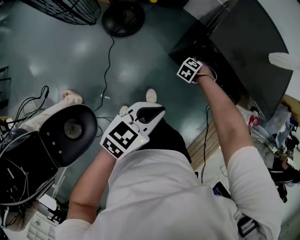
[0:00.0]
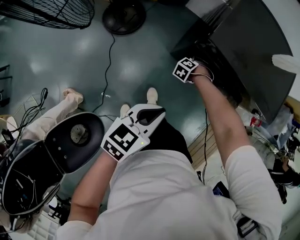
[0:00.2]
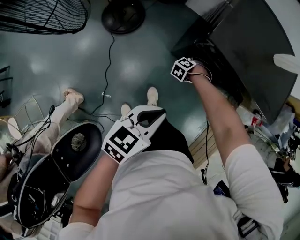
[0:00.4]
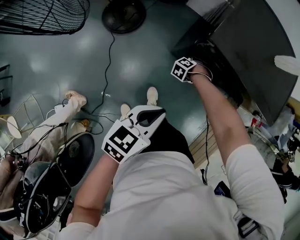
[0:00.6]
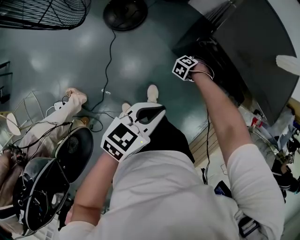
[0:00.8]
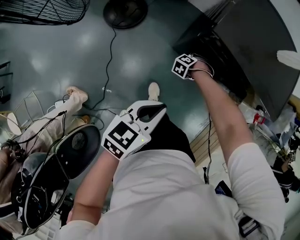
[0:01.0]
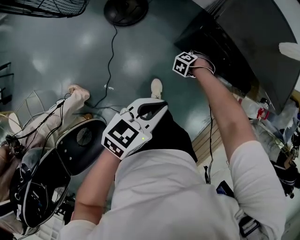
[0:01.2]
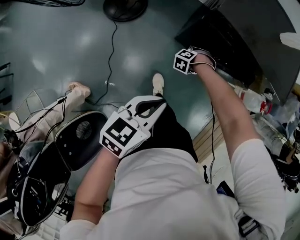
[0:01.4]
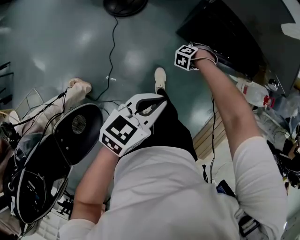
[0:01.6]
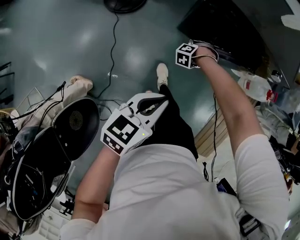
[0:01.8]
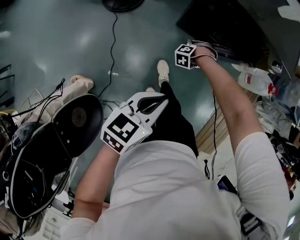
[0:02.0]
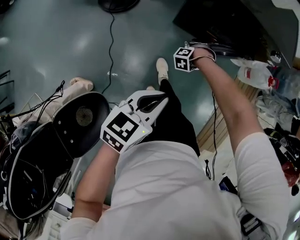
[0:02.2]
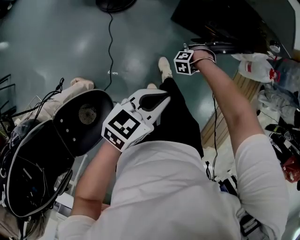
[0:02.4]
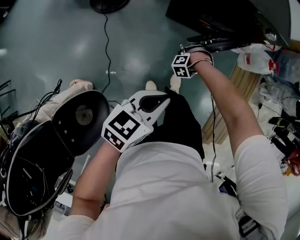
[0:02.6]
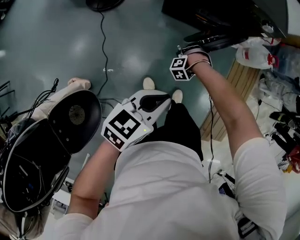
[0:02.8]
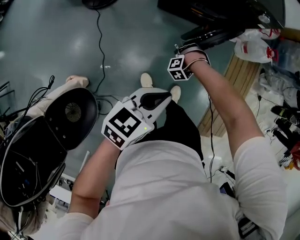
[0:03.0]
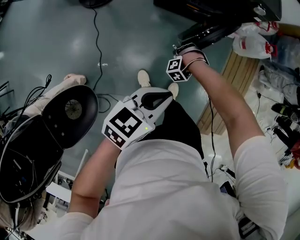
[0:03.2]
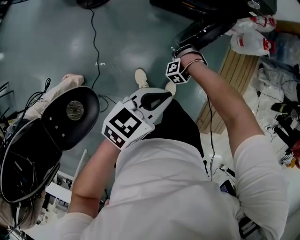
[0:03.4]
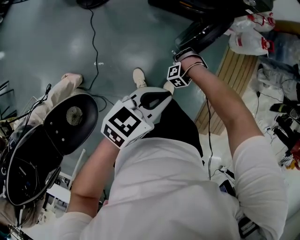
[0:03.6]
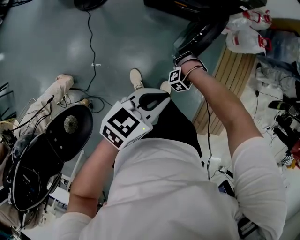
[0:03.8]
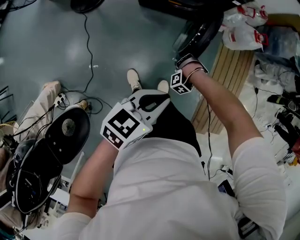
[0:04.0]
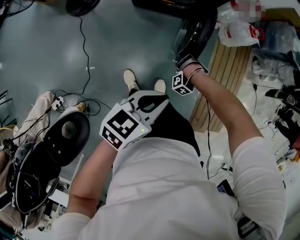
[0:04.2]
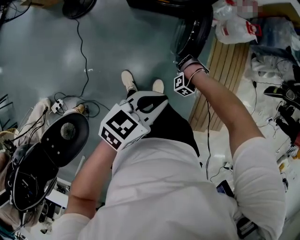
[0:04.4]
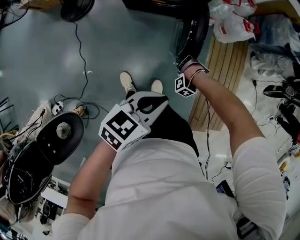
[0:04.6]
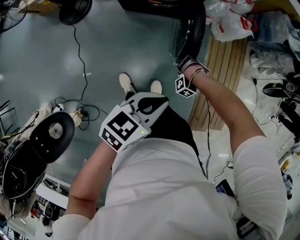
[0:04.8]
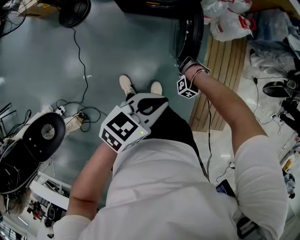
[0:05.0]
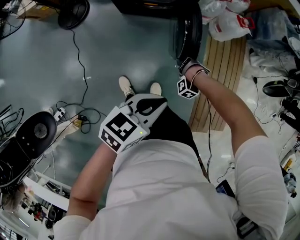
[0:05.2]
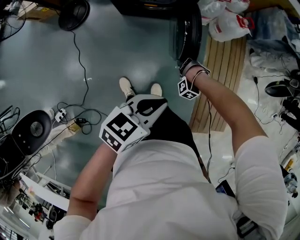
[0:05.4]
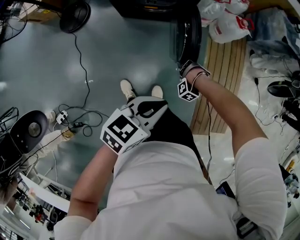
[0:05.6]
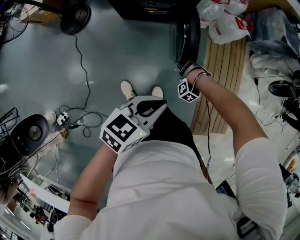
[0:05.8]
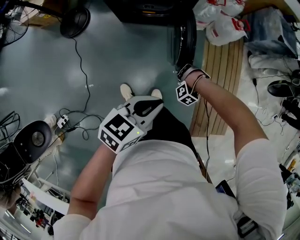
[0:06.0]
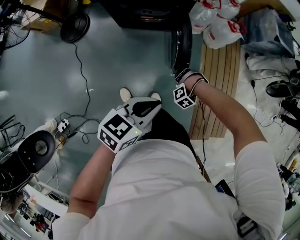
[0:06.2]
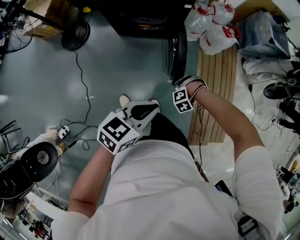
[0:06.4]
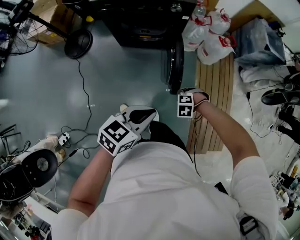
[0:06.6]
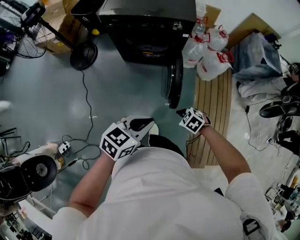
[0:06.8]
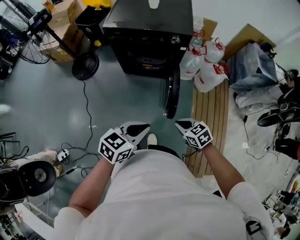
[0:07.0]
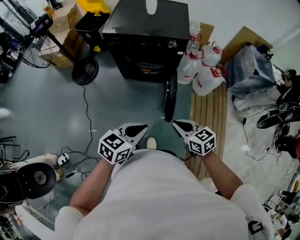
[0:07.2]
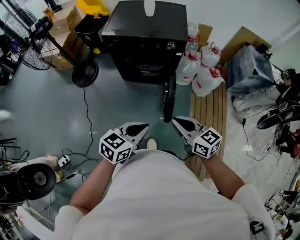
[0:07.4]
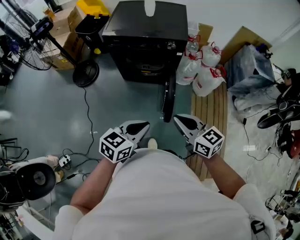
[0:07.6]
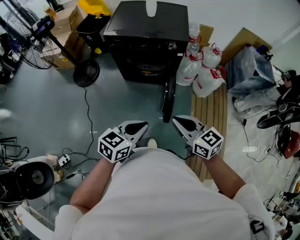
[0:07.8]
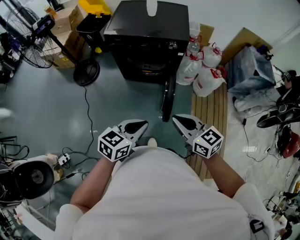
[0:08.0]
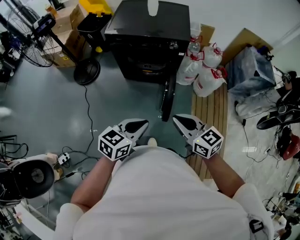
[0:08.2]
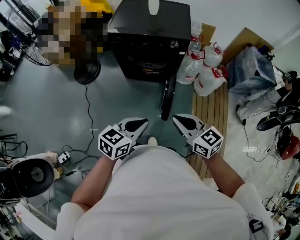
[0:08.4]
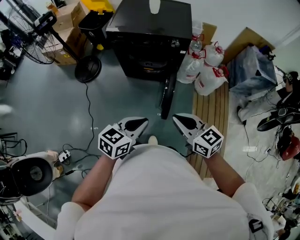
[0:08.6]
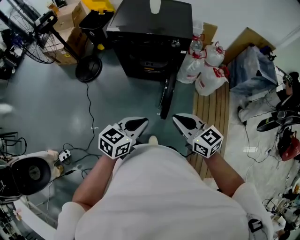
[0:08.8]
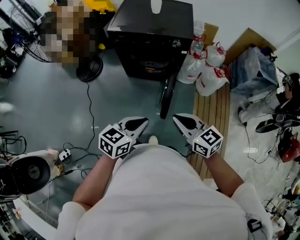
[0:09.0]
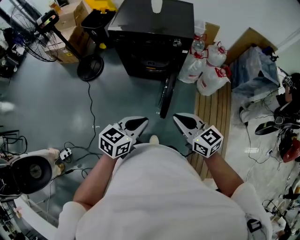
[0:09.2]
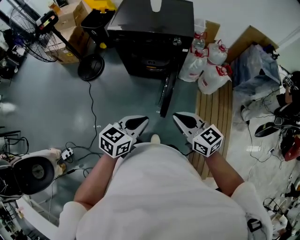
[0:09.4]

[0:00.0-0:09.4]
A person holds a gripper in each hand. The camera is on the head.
0:00.0 to 0:01.6: The left gripper ends up about 10 cm from where it was.
0:01.6 to 0:03.2: The left gripper shifts by some 25 cm.
0:03.2 to 0:04.8: The left gripper moves approximately 20 cm.
0:06.2 to 0:07.8: The left gripper is displaced upward by approximately 5 cm.

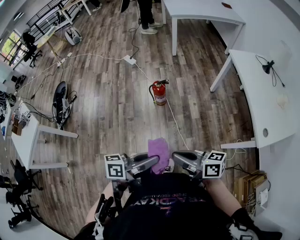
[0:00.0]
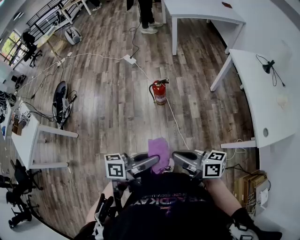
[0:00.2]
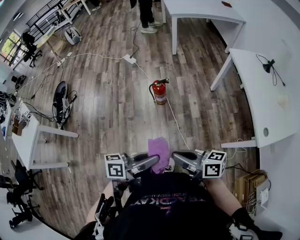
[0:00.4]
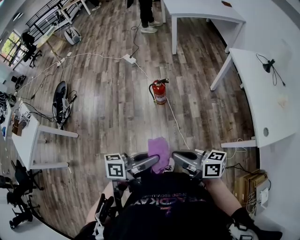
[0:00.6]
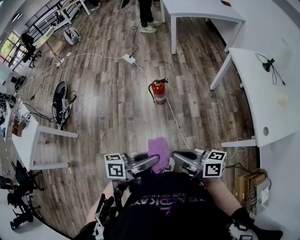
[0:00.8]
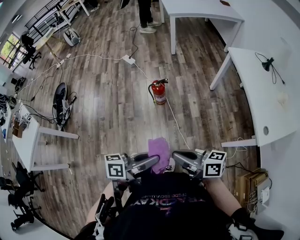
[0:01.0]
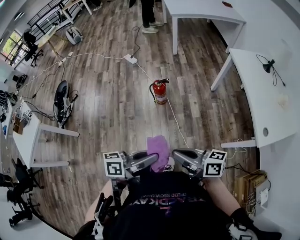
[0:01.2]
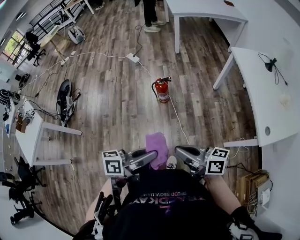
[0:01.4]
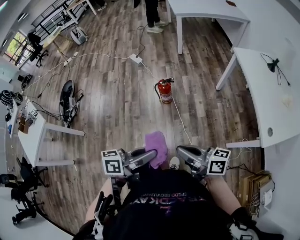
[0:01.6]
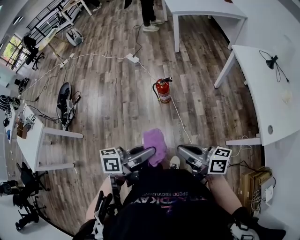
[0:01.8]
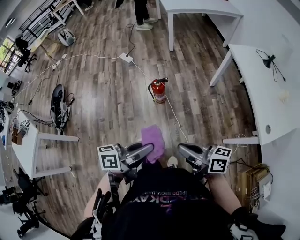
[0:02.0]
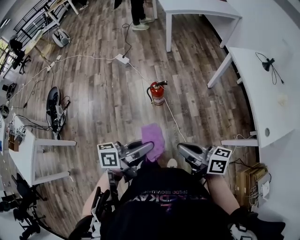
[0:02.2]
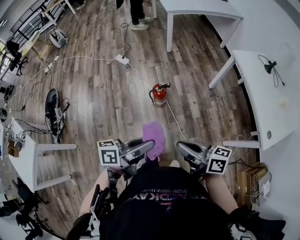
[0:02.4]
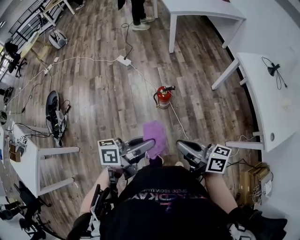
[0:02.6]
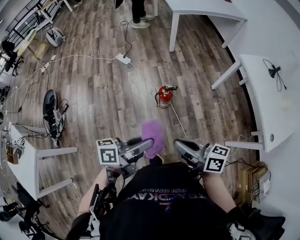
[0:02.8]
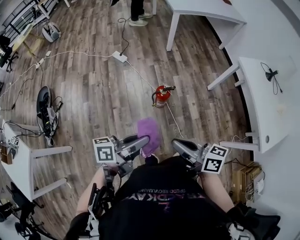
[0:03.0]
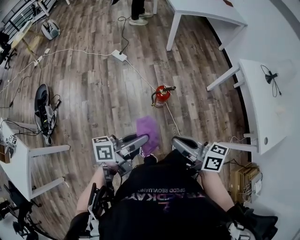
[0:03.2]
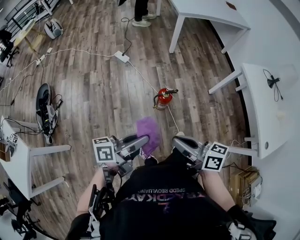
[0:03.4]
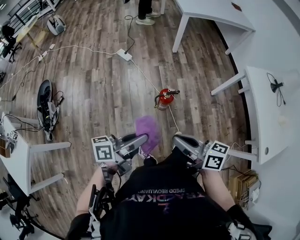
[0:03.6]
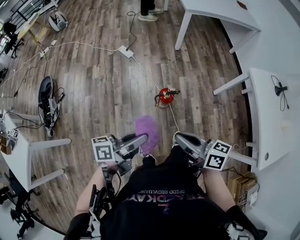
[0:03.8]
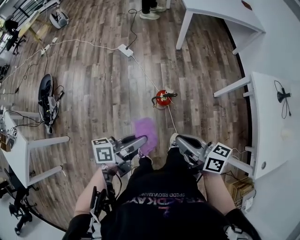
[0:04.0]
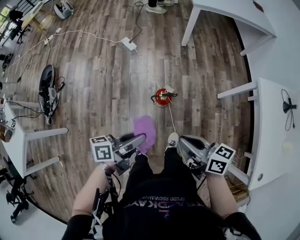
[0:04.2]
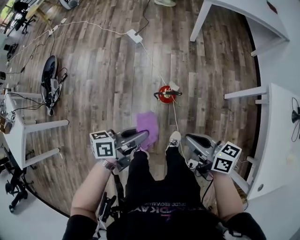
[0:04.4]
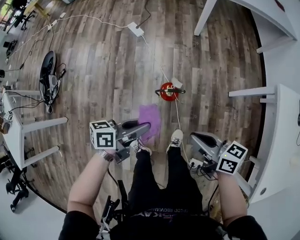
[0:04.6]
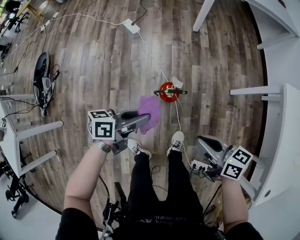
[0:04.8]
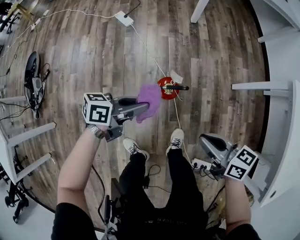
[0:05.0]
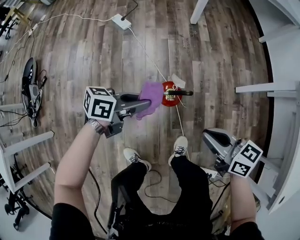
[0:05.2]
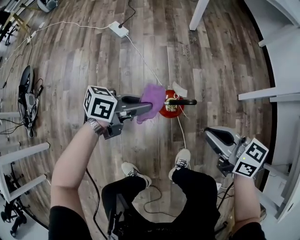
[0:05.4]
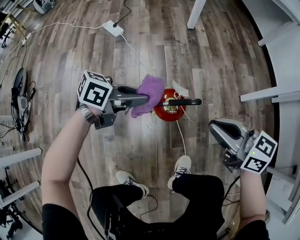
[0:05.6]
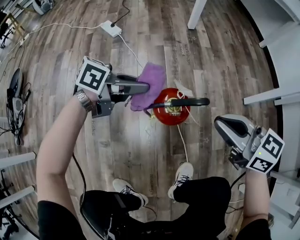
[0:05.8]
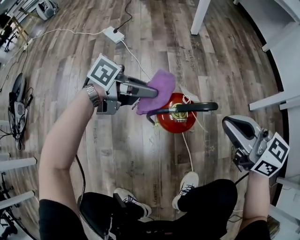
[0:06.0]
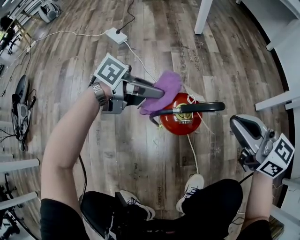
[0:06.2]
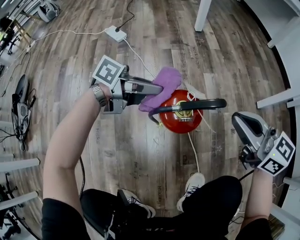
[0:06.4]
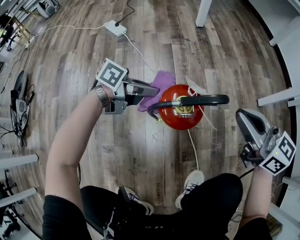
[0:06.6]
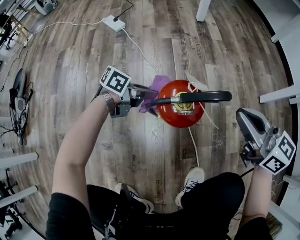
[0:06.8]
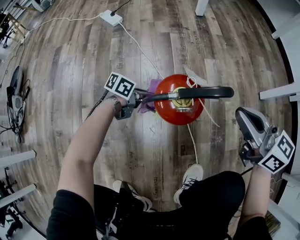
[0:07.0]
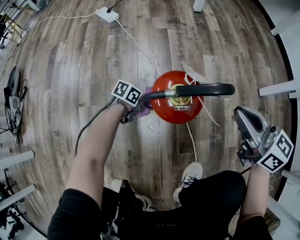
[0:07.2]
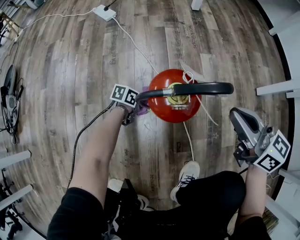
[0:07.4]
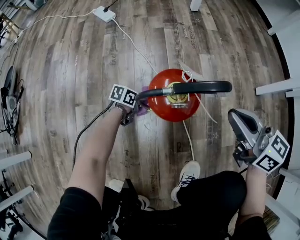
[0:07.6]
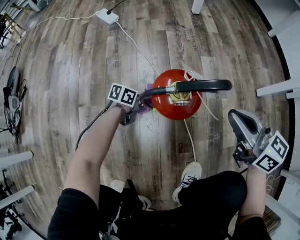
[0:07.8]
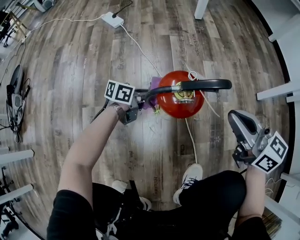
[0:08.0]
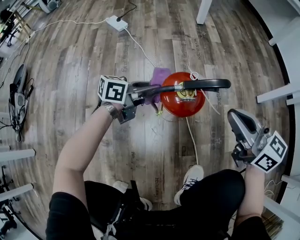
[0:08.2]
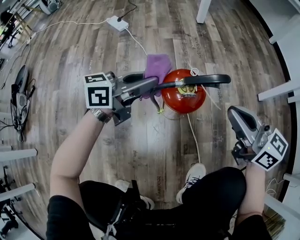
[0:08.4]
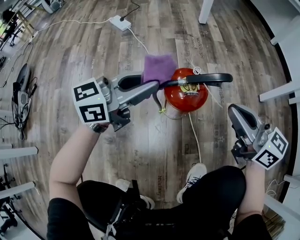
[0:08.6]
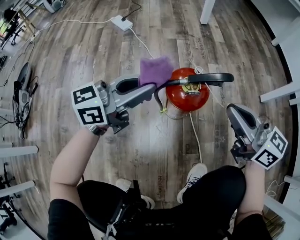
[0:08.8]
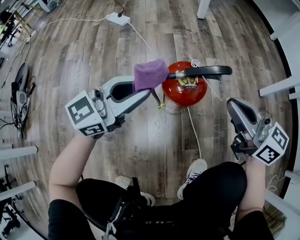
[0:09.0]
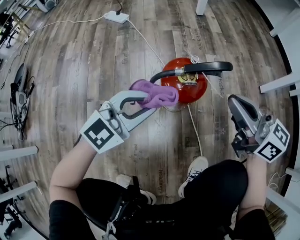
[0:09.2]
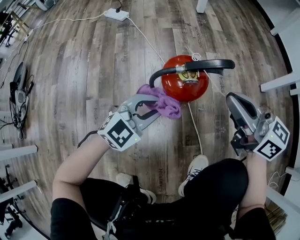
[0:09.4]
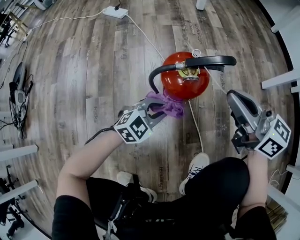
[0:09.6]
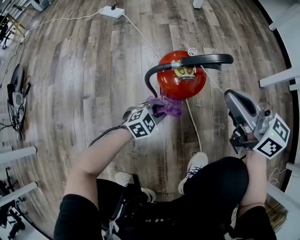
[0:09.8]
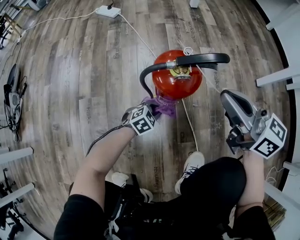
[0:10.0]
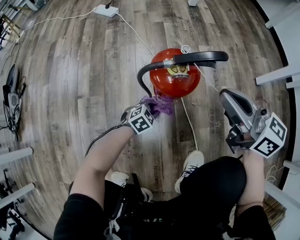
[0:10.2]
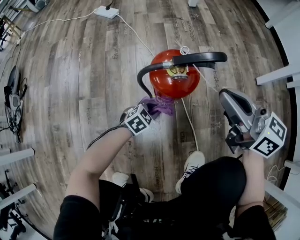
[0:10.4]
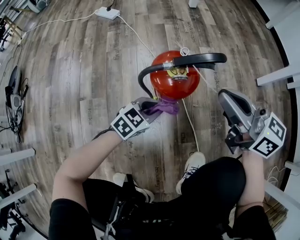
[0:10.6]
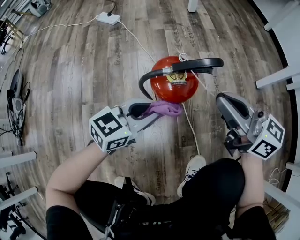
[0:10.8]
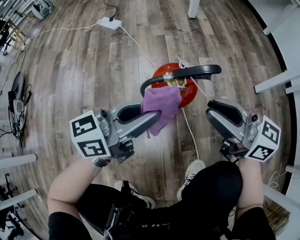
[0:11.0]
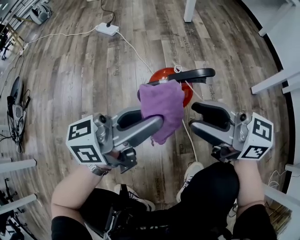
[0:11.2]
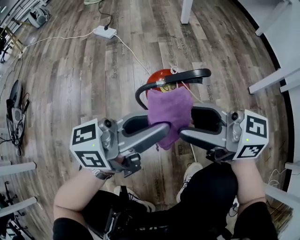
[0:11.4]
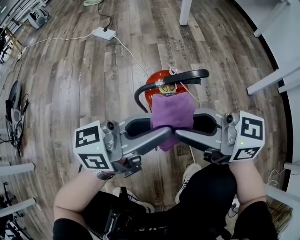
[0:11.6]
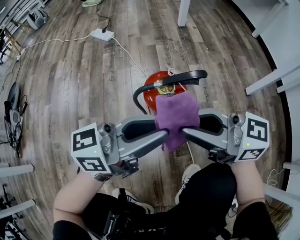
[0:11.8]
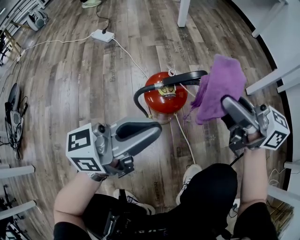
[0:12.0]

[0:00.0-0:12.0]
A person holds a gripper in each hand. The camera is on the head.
0:00.0 to 0:01.6: The grippers stay close to where they were, moving slightly.
0:01.6 to 0:03.0: The right gripper is displaced to the left and forward by roughly 25 cm. Meanwhile the left gripper is displaced forward and to the left by about 30 cm.
0:03.0 to 0:04.4: The left gripper goes about 20 cm forward, downward and to the right. The right gripper is displaced forward, to the right and downward by approximately 25 cm.
0:04.4 to 0:06.0: Both grippers move downward, approximately 40 cm. The left gripper swivels some 40 degrees, while the right gripper rotates about 30 degrees.
0:06.0 to 0:07.6: The left gripper shifts approximately 35 cm downward, and points its fingers some 30 degrees further downward. Meanwhile the right gripper moves downward, about 10 cm.
0:07.6 to 0:09.0: The left gripper travels upward by approximately 40 cm, and tips its fingers upward by approximately 40 degrees, while the right gripper moves approximately 5 cm.
0:09.0 to 0:10.4: The left gripper travels downward by about 35 cm, and tilts its fingers approximately 50 degrees downward.
0:10.4 to 0:12.0: The left gripper shifts some 40 cm upward, and points its fingers roughly 60 degrees further upward, while the right gripper shifts some 10 cm upward, and opens and closes again.

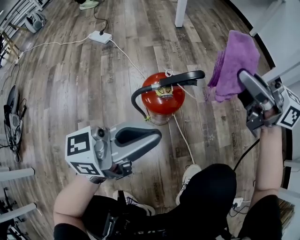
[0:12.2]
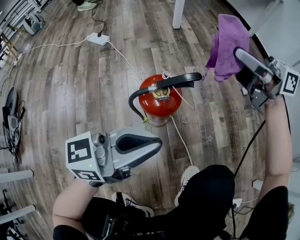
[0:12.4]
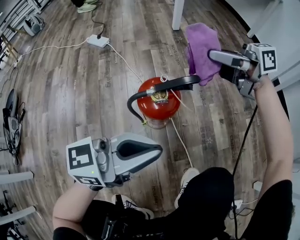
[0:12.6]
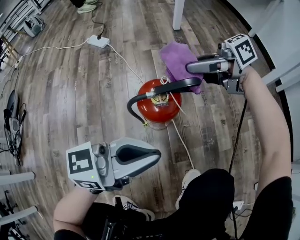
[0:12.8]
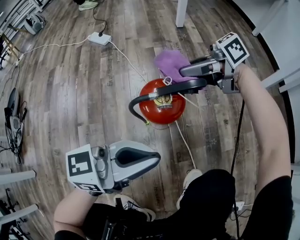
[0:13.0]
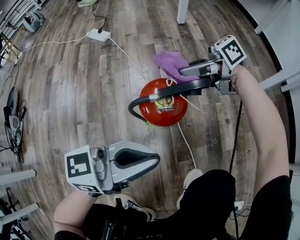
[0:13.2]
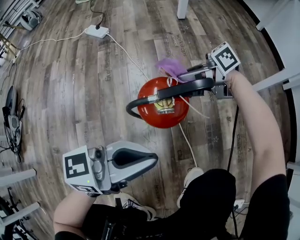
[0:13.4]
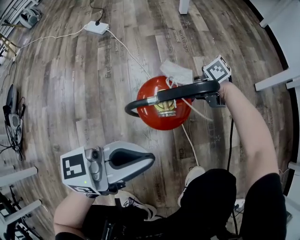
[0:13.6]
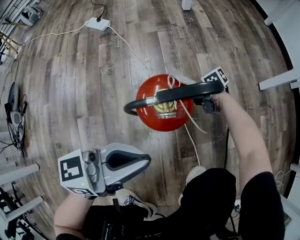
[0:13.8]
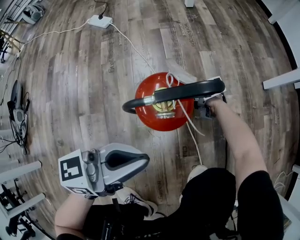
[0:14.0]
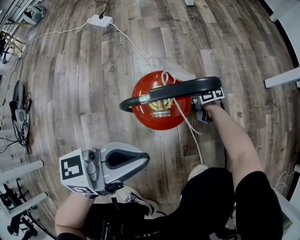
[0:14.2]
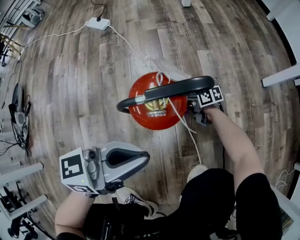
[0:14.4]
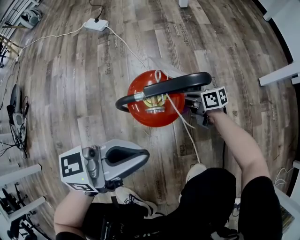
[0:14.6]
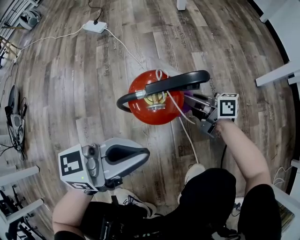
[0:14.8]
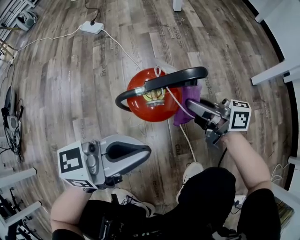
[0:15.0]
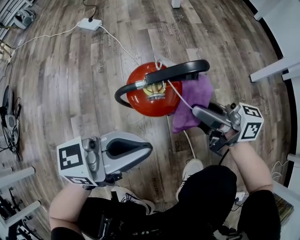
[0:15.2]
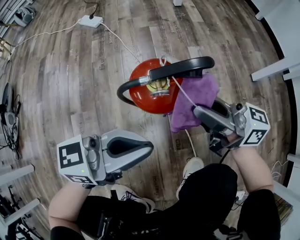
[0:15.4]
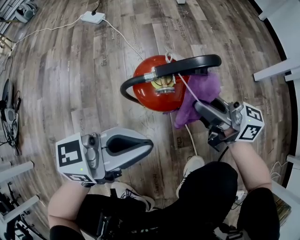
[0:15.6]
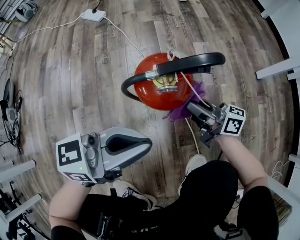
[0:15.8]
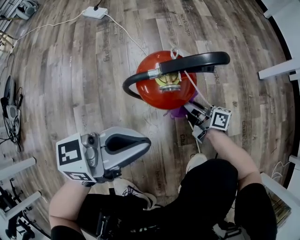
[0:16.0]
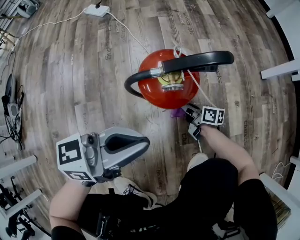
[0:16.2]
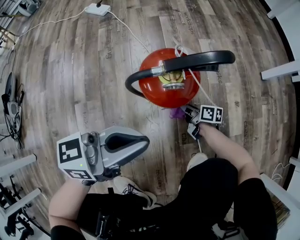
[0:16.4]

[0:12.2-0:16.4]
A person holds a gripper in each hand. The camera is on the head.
0:12.2 to 0:13.6: The right gripper moves downward, approximately 30 cm, and rotates approximately 50 degrees. The left gripper goes about 5 cm downward.
0:13.6 to 0:15.0: The right gripper reaches some 20 cm downward, then returns, and rotates approximately 40 degrees.
0:15.0 to 0:16.4: The right gripper travels downward by about 30 cm, and rotates approximately 40 degrees.
